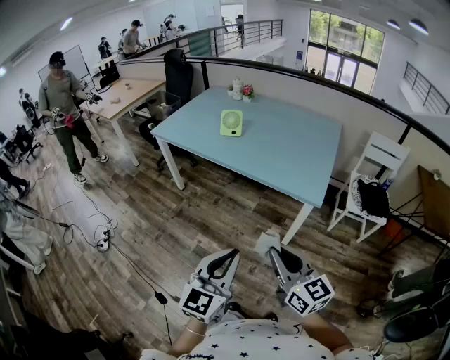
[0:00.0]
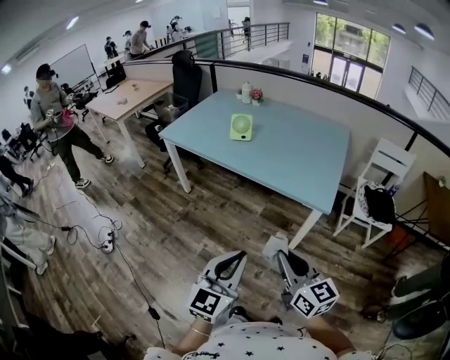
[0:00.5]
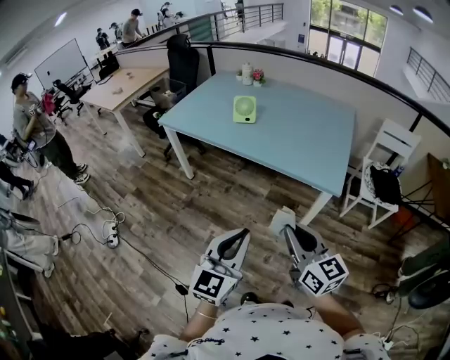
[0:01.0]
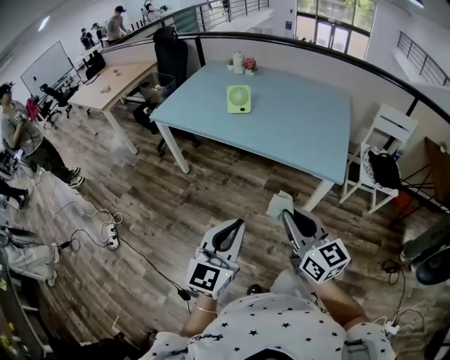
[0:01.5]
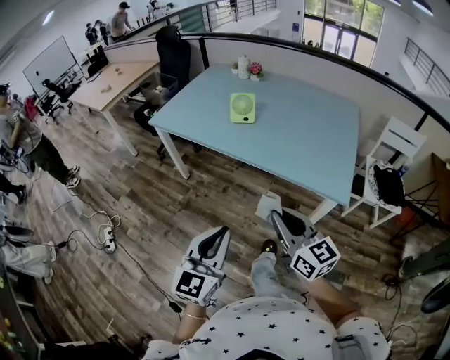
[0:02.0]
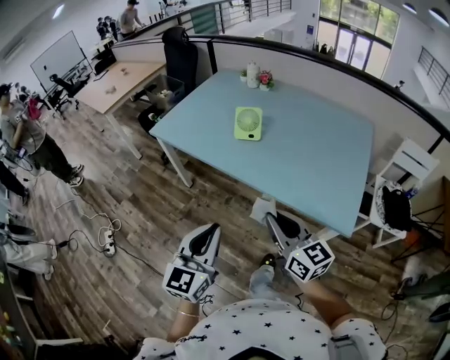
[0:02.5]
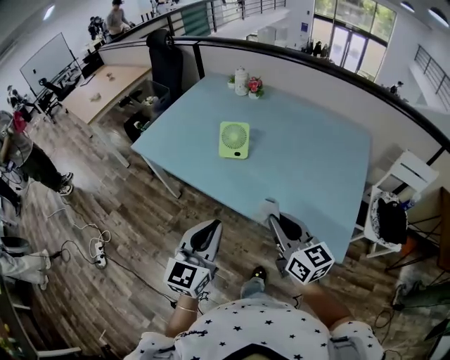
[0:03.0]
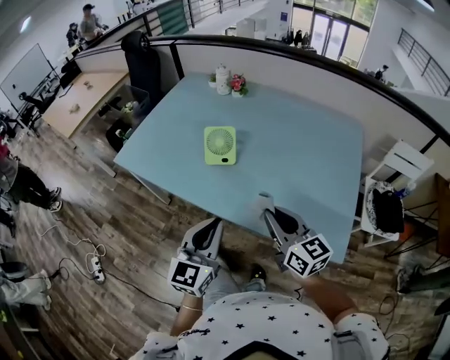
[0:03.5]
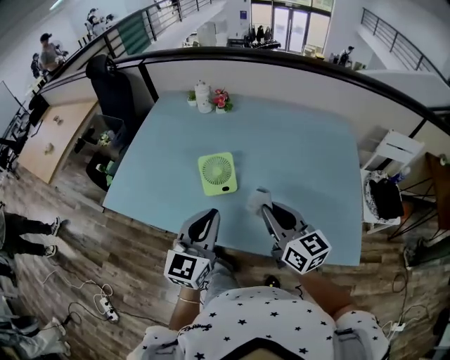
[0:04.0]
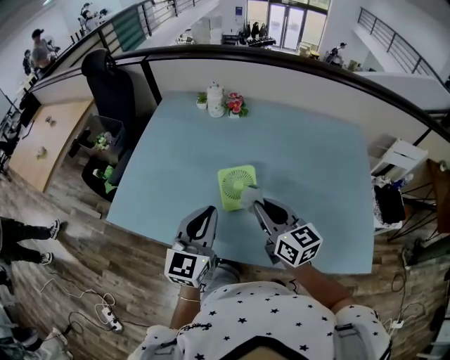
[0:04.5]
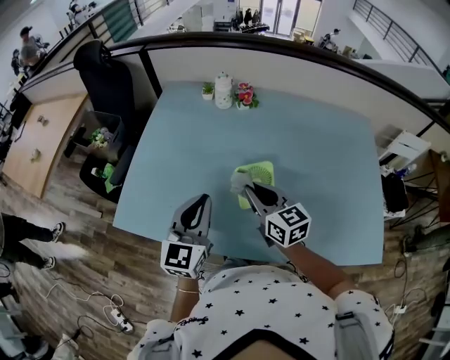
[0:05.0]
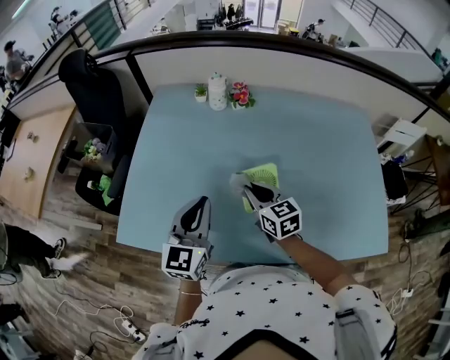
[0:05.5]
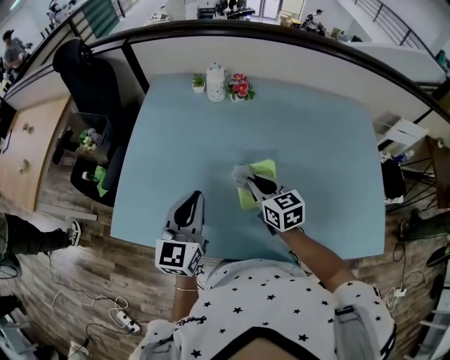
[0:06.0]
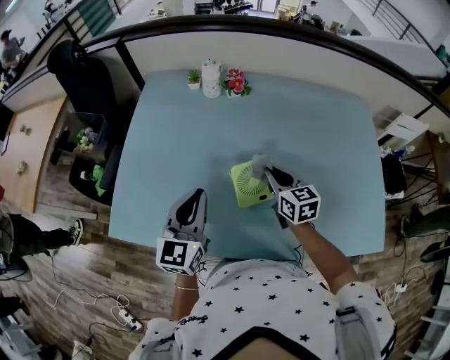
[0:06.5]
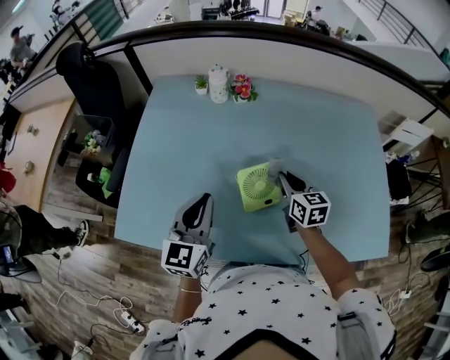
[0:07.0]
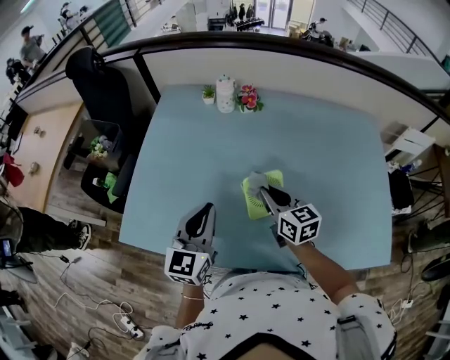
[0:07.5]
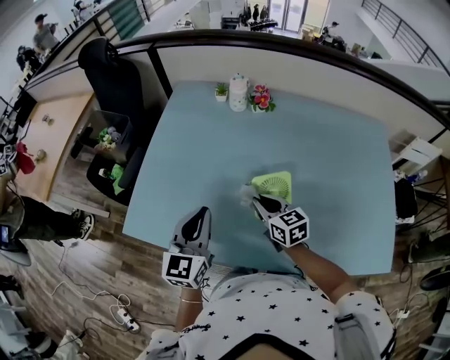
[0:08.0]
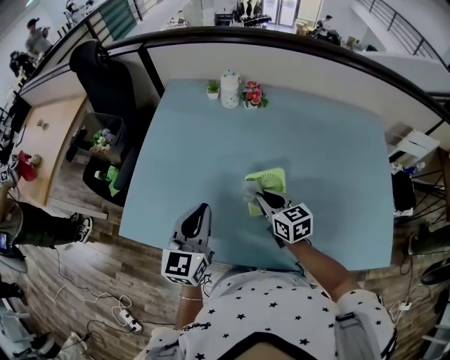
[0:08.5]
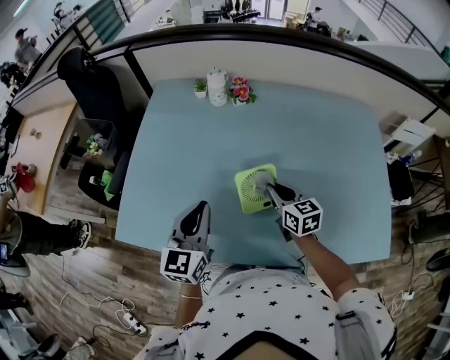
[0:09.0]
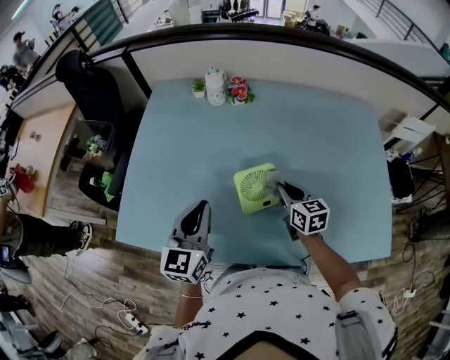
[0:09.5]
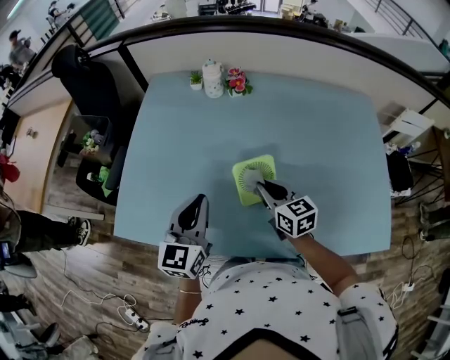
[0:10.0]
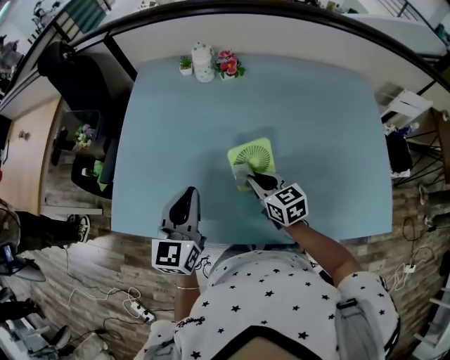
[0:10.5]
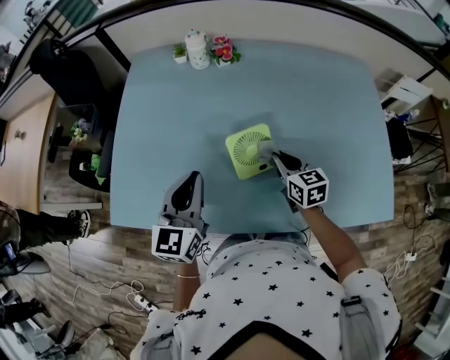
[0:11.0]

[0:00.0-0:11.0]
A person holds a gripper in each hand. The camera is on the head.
0:00.0 to 0:02.0: Both grippers travel together forward and to the left, approximately 20 cm.
0:02.0 to 0:03.5: Both grippers travel together forward, about 30 cm.
0:03.5 to 0:05.5: Both grippers move forward and to the left, about 40 cm. The right gripper turns by approximately 20 degrees.
0:05.5 to 0:07.5: The right gripper moves roughly 10 cm to the right and comes back.
0:07.5 to 0:09.0: The right gripper shifts by some 5 cm.
0:09.0 to 0:11.0: The right gripper swings left and right, approximately 10 cm each way, with 2 reversals.

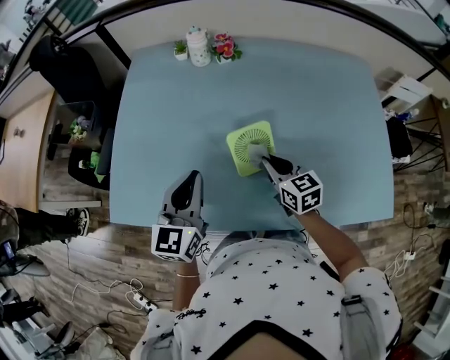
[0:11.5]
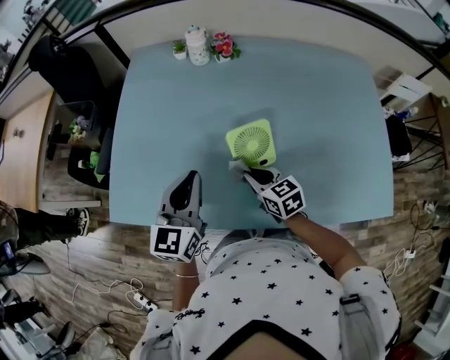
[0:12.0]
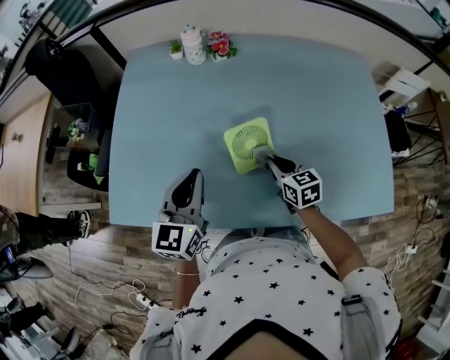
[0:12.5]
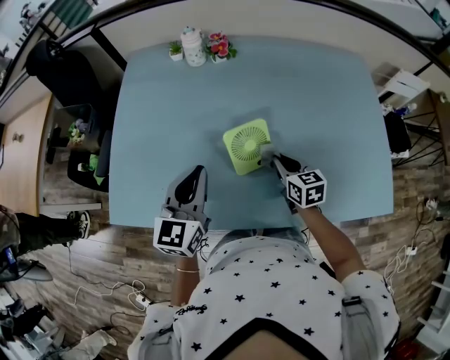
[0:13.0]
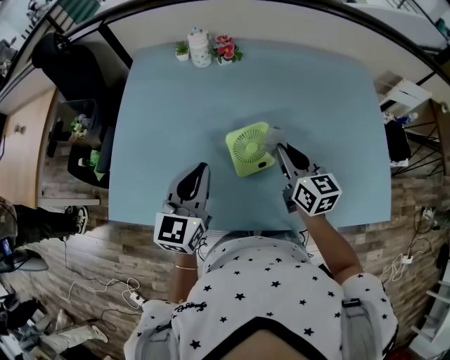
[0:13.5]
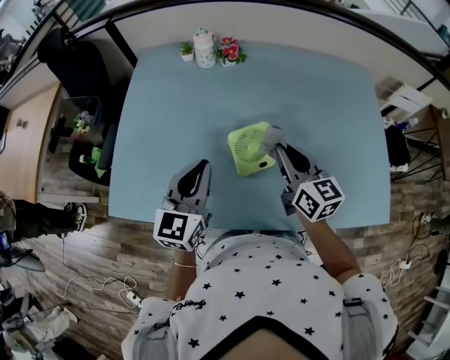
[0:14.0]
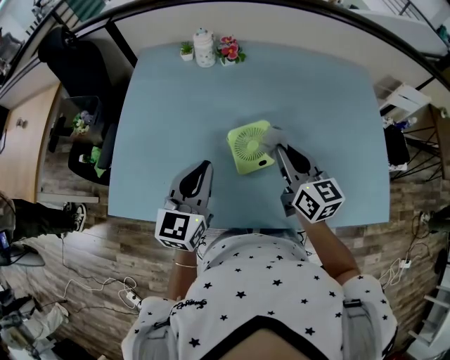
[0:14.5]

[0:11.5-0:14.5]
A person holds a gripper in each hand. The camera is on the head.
0:11.5 to 0:13.0: The right gripper is displaced to the right by approximately 5 cm.
0:13.0 to 0:14.5: The right gripper moves upward, roughly 15 cm, and changes its angle by roughly 20 degrees.

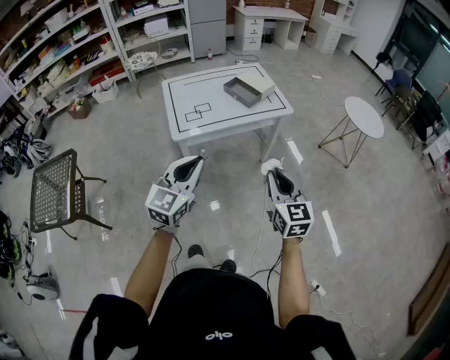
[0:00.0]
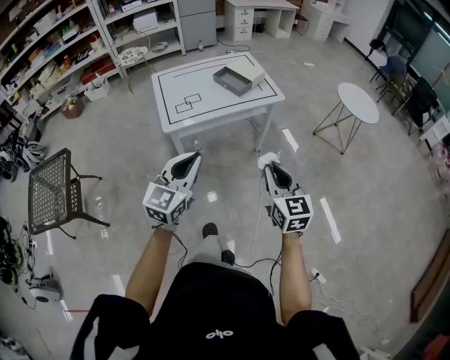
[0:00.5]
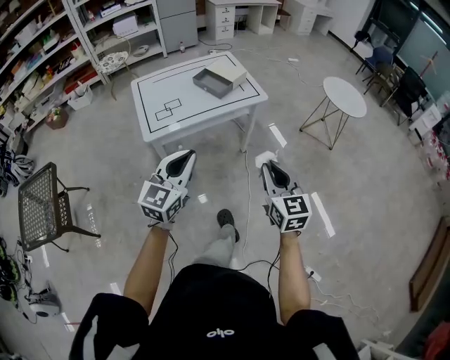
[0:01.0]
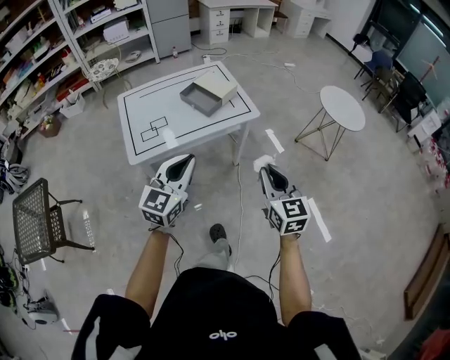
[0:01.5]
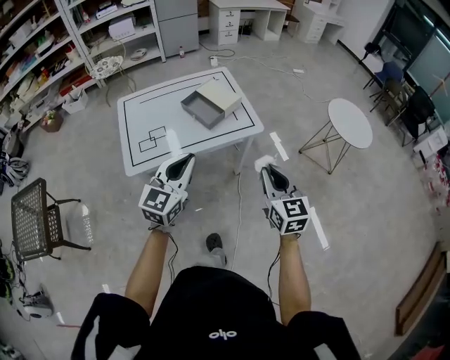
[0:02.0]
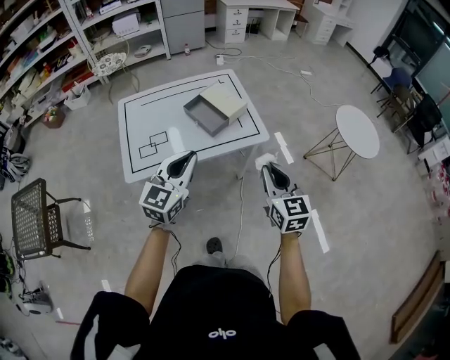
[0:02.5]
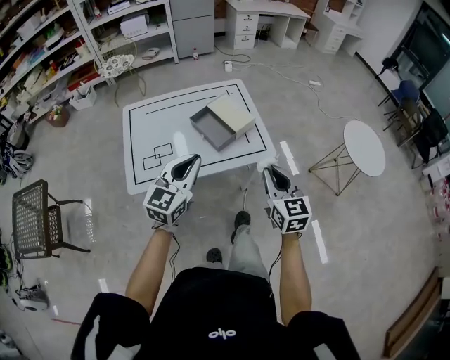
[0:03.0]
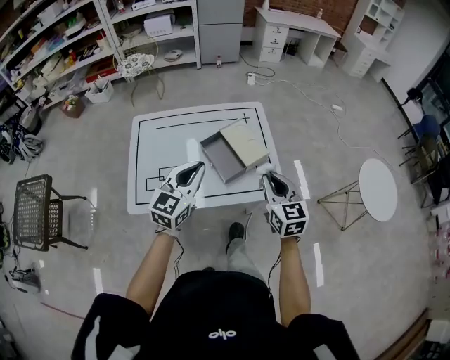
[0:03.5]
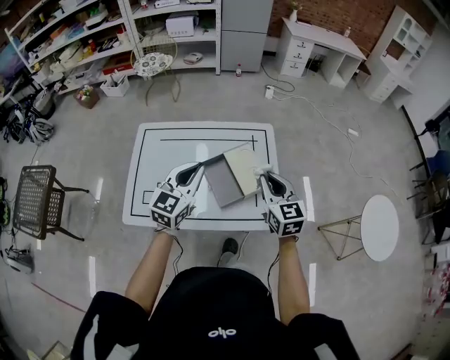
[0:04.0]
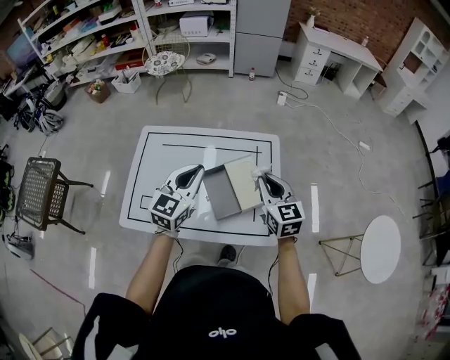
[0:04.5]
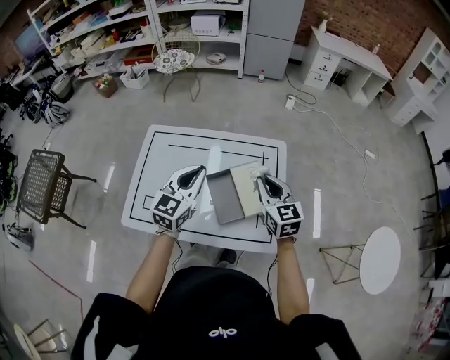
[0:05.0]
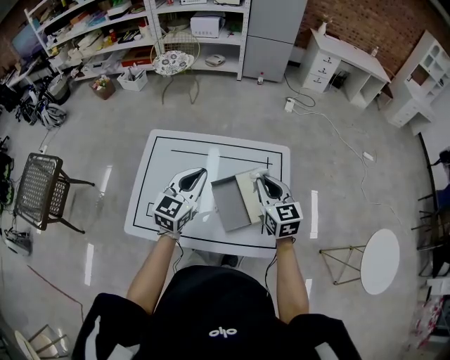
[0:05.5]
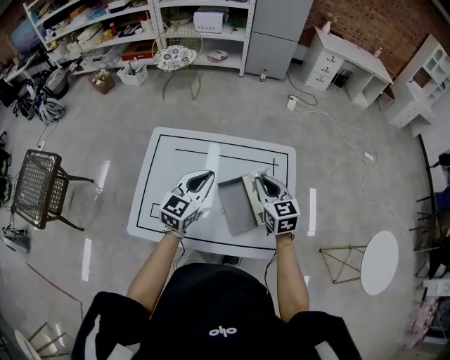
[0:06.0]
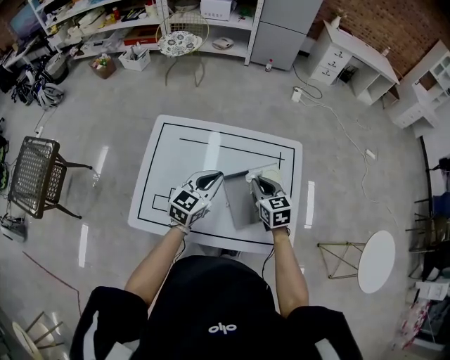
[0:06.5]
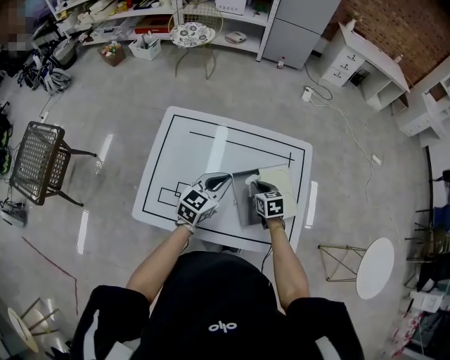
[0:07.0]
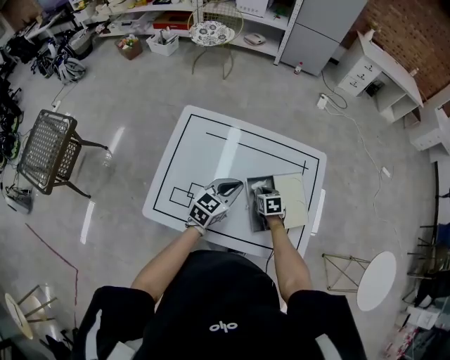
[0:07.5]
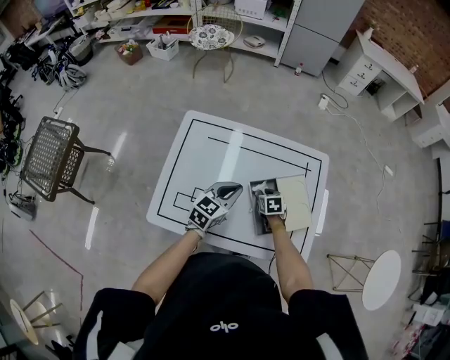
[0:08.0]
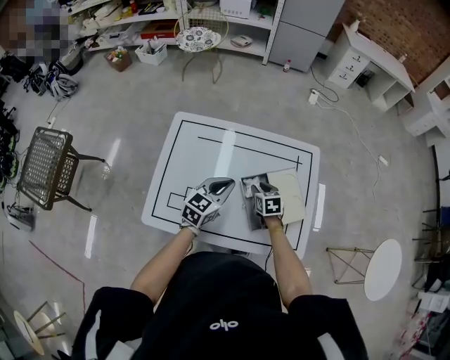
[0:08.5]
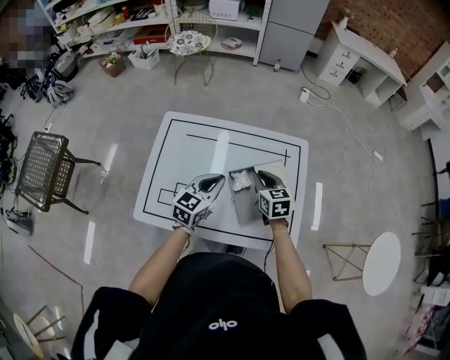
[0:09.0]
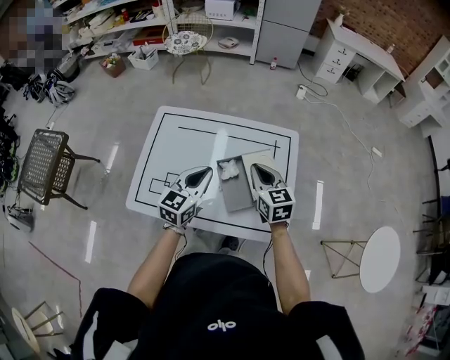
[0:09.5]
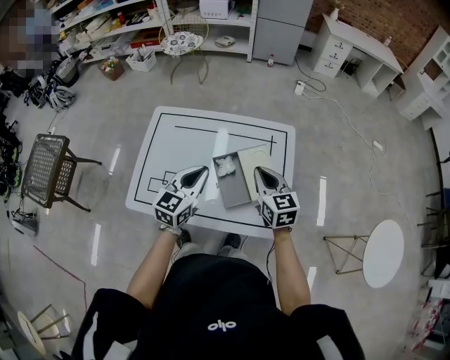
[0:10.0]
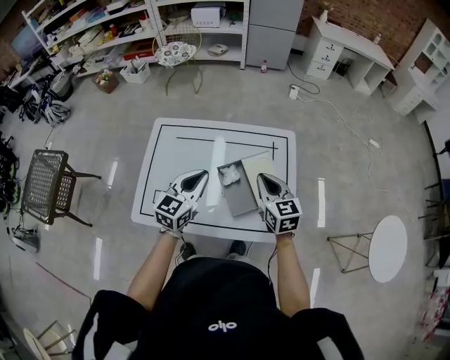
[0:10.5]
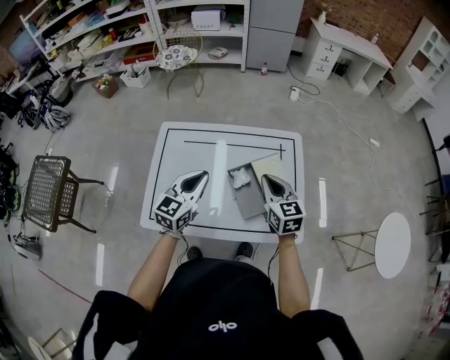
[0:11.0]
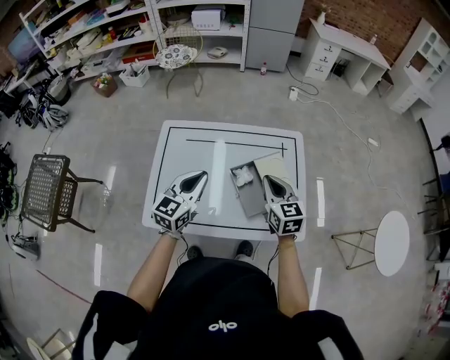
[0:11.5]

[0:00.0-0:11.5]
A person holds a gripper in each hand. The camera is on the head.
0:00.0 to 0:02.0: Both grippers travel together forward and to the right, some 30 cm.
0:02.0 to 0:04.0: The pair of grippers is taken forward, approximately 40 cm. The right gripper changes its angle by approximately 20 degrees.
0:04.0 to 0:06.0: The left gripper heads forward, to the left and downward, covering roughly 15 cm. Meanwhile the right gripper heads forward and to the left, covering roughly 15 cm.
0:06.0 to 0:07.5: The right gripper moves downward, approximately 25 cm, and tilts its fingers approximately 30 degrees downward. Meanwhile the left gripper is displaced downward by some 10 cm.
0:07.5 to 0:09.5: The left gripper heads upward and backward, covering roughly 10 cm. Meanwhile the right gripper goes some 25 cm upward, and tips its fingers upward by some 30 degrees.
0:09.5 to 0:11.5: The left gripper goes about 10 cm to the left.

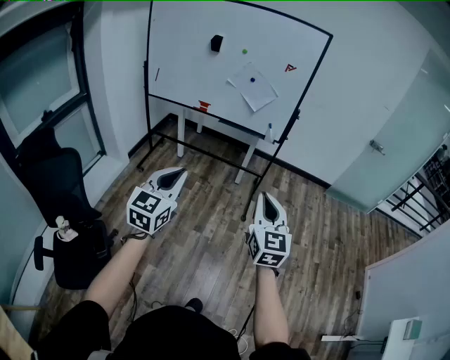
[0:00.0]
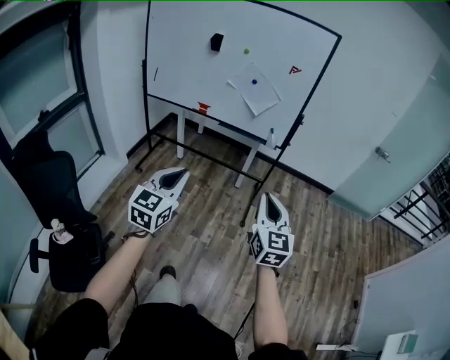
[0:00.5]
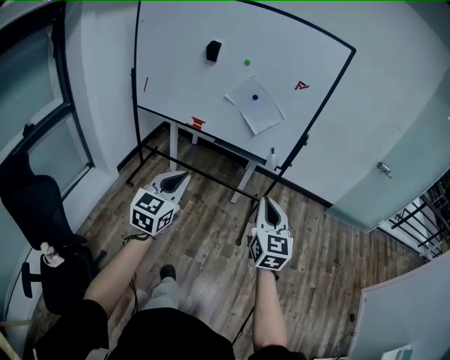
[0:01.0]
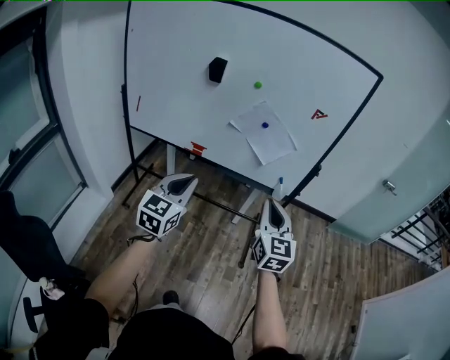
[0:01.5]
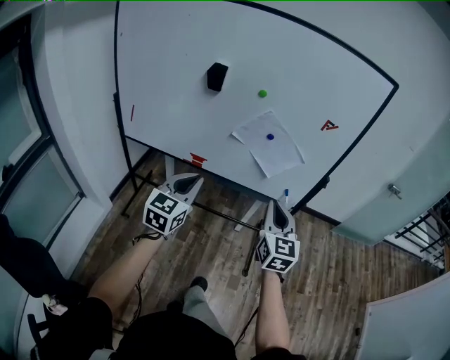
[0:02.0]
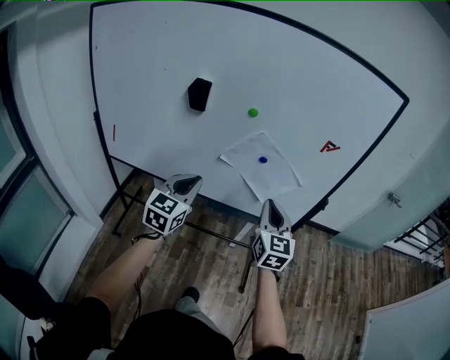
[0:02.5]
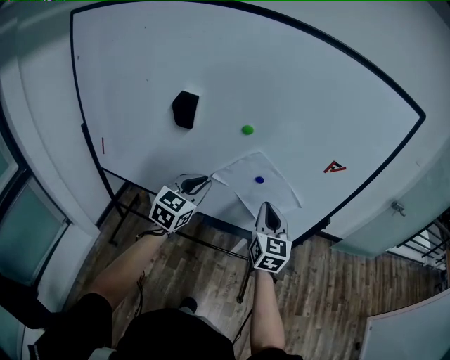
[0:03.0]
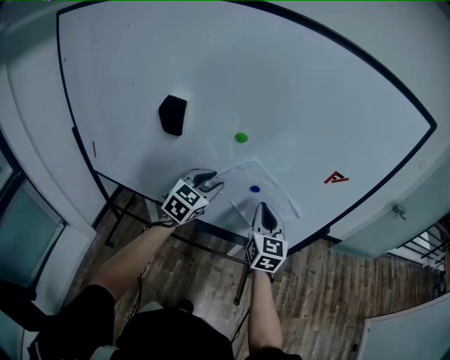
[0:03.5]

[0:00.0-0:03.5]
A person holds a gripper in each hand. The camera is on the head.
0:00.0 to 0:02.0: Both grippers are carried forward, about 60 cm.
0:02.0 to 0:03.5: Both grippers move forward, some 30 cm. The left gripper opens its fingers.
